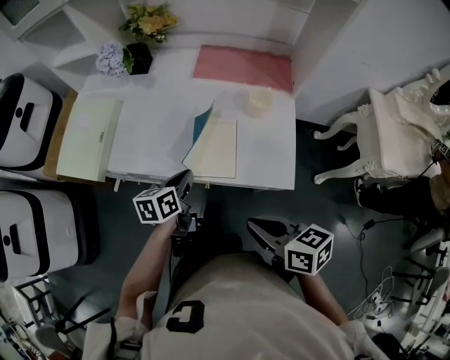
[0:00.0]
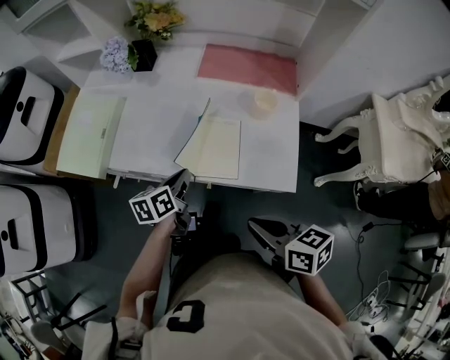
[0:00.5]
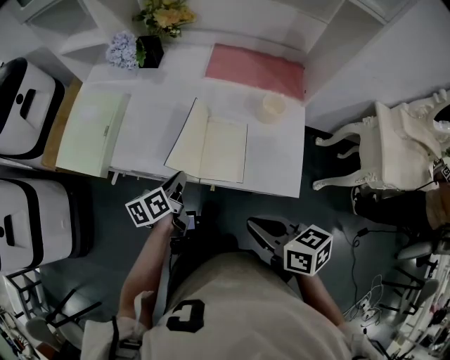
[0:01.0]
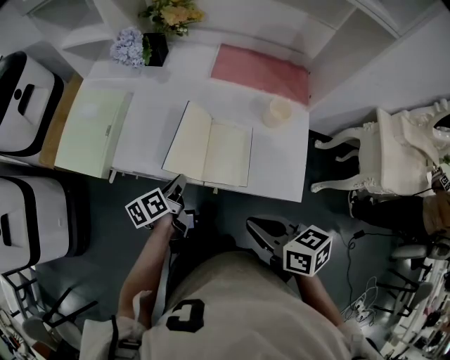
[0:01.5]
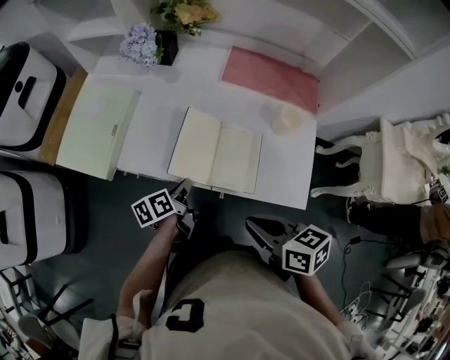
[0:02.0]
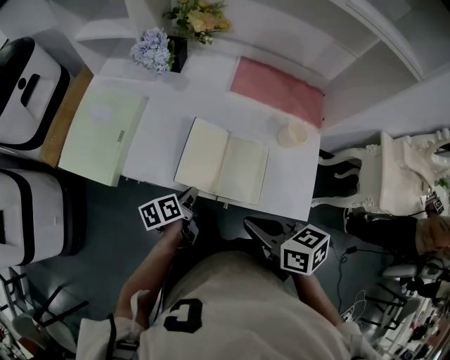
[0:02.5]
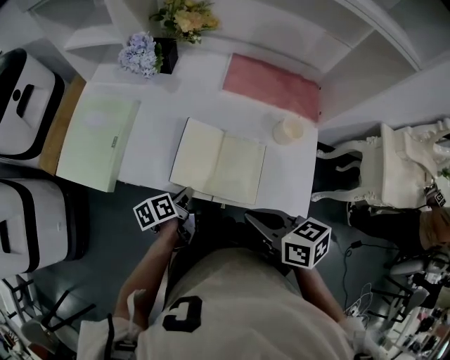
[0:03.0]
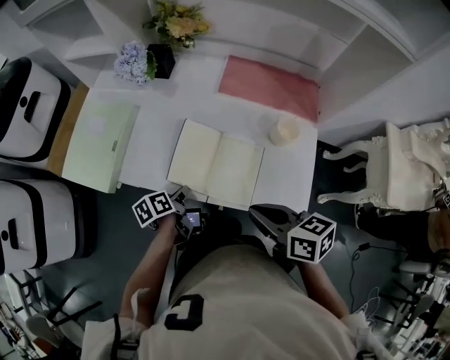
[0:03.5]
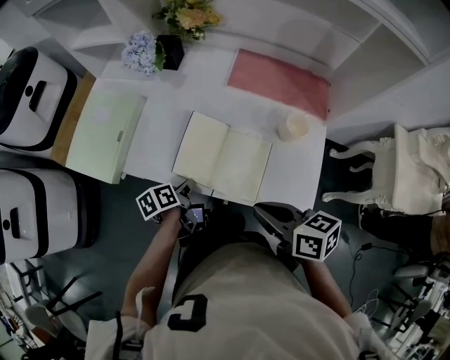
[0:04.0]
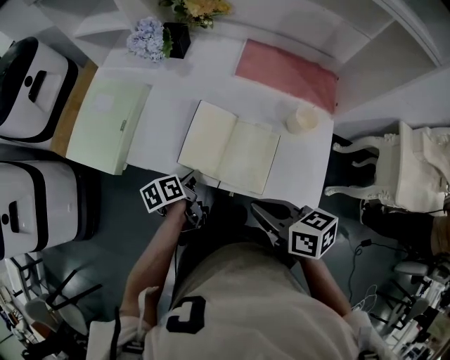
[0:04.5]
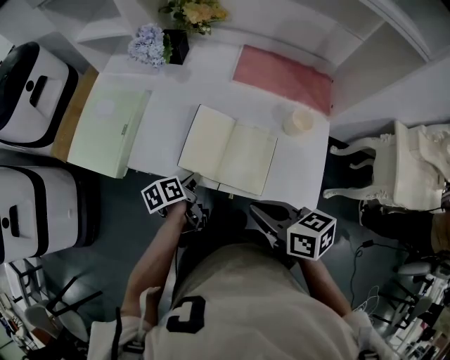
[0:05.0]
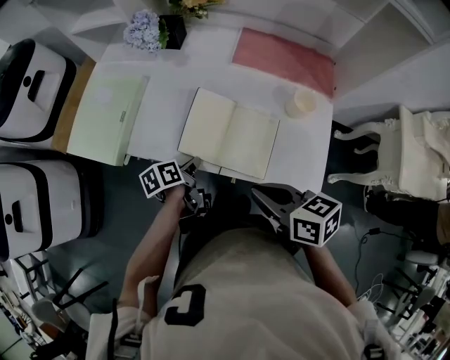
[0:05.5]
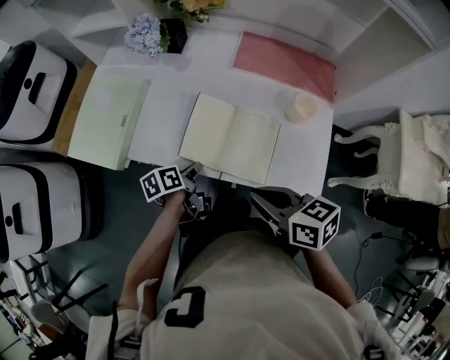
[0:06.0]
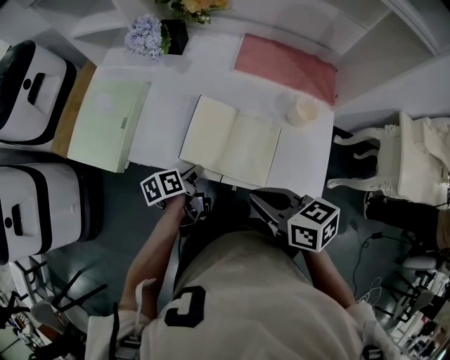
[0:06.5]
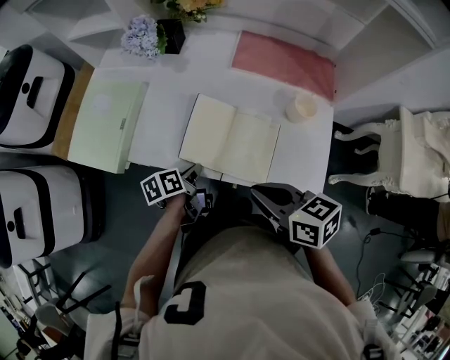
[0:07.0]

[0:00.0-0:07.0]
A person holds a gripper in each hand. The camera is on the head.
0:00.0 to 0:02.0: The left gripper goes approximately 10 cm to the left and downward, and changes its angle by some 30 degrees; the right gripper heads forward and to the left, covering approximately 10 cm.
0:02.0 to 0:03.5: The right gripper shifts about 5 cm forward.
0:03.5 to 0:07.0: There are only small adjustments of the grippers.

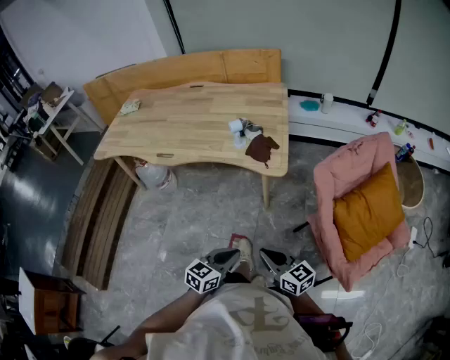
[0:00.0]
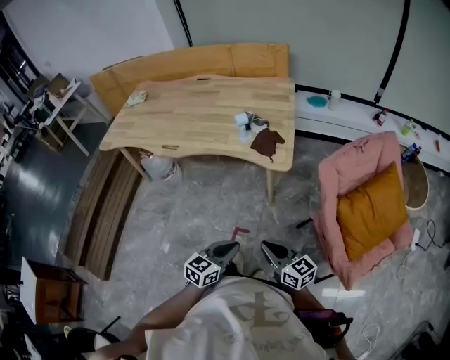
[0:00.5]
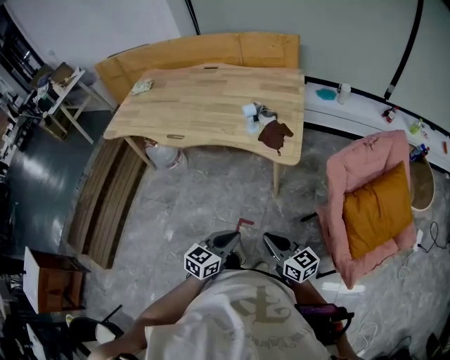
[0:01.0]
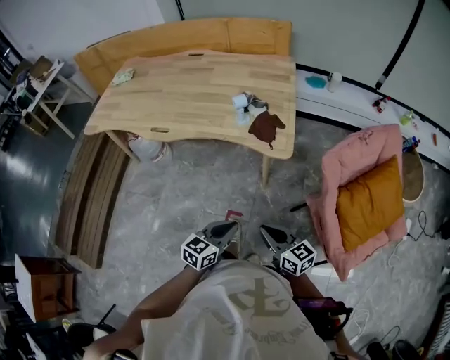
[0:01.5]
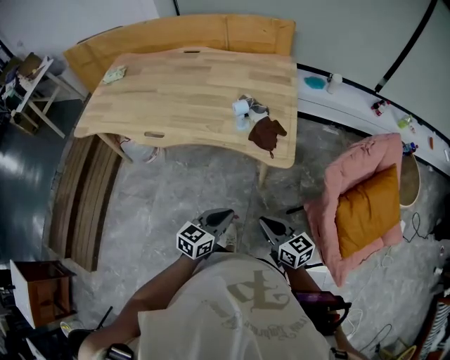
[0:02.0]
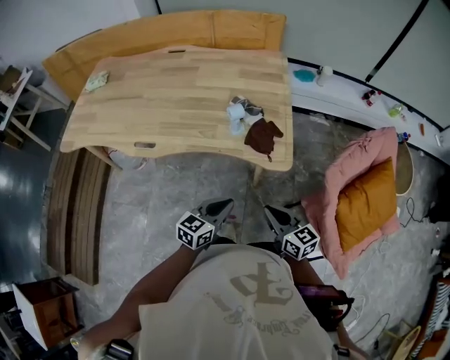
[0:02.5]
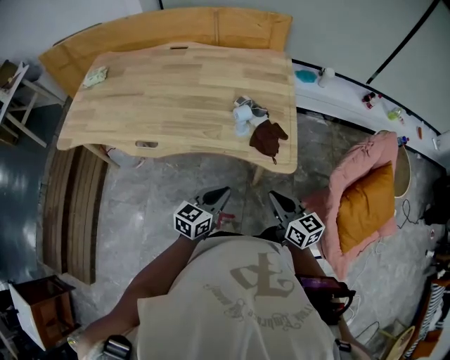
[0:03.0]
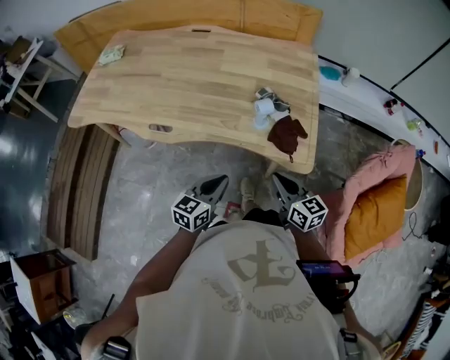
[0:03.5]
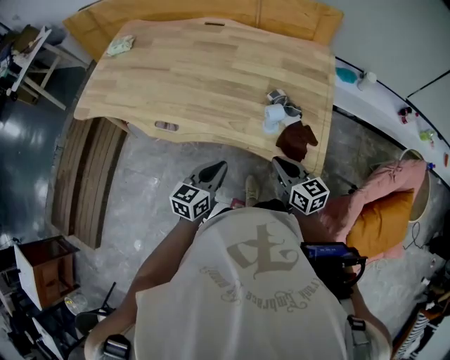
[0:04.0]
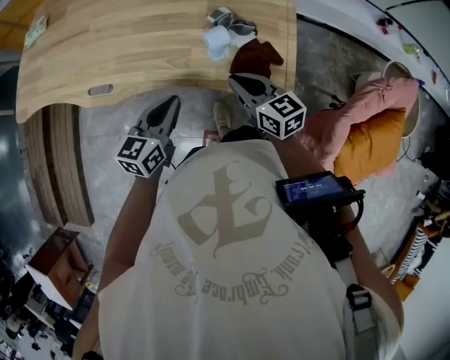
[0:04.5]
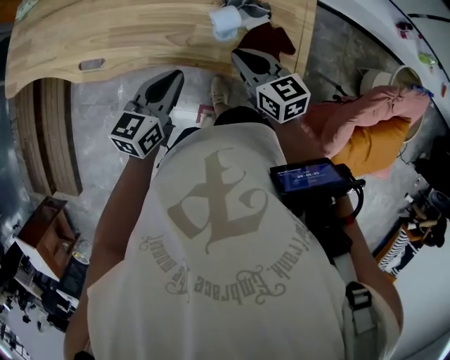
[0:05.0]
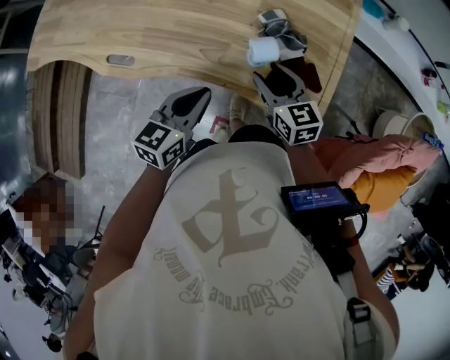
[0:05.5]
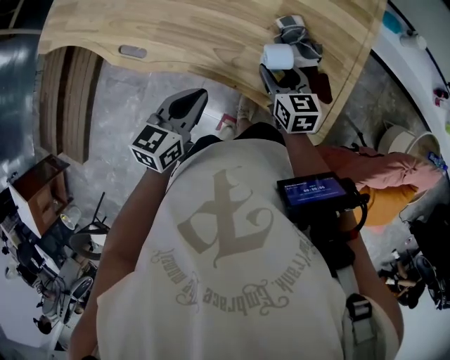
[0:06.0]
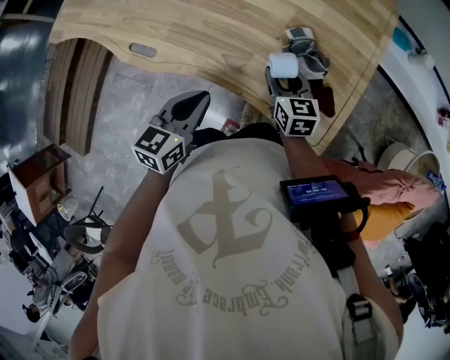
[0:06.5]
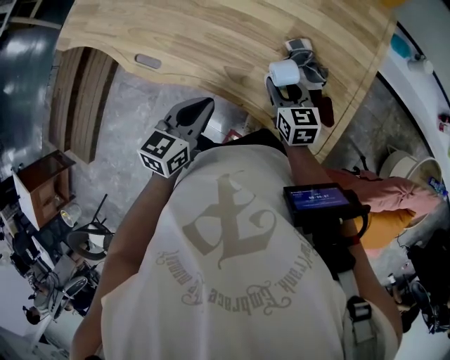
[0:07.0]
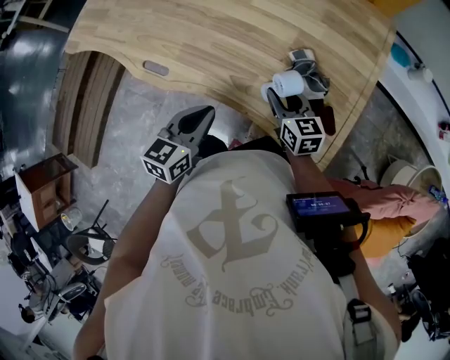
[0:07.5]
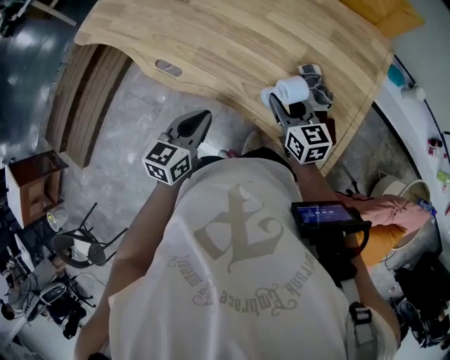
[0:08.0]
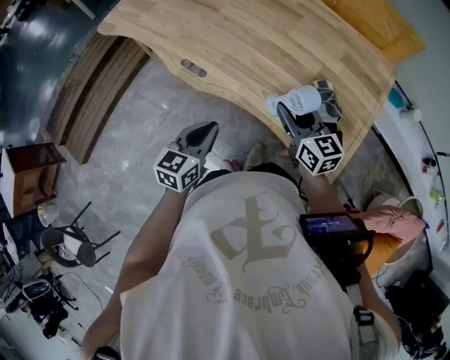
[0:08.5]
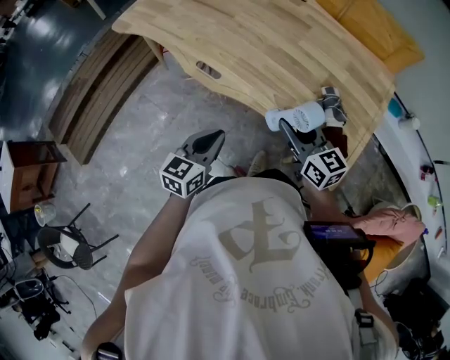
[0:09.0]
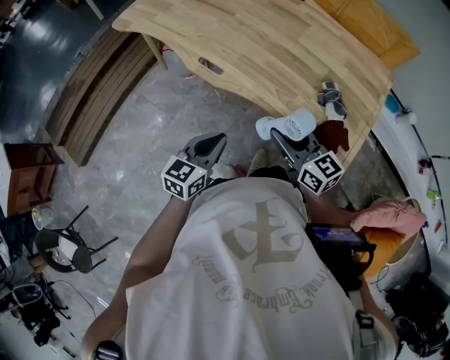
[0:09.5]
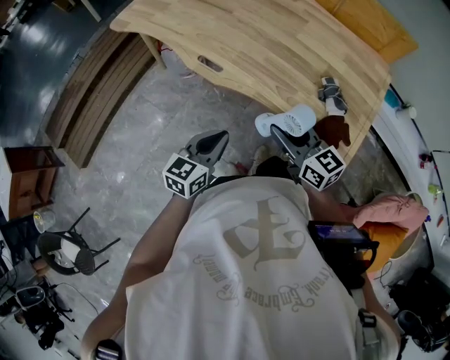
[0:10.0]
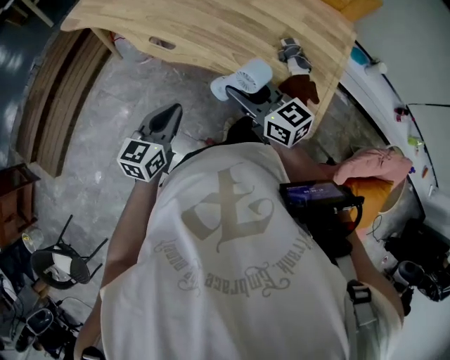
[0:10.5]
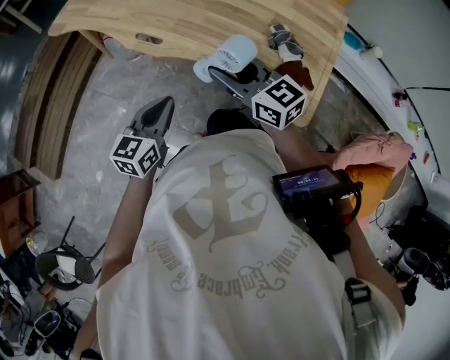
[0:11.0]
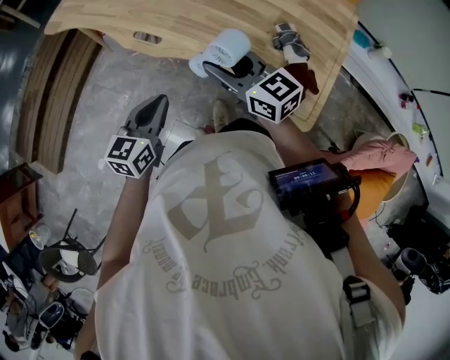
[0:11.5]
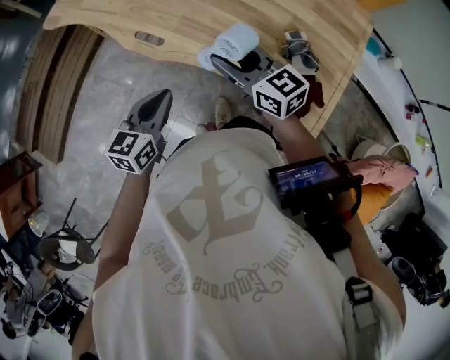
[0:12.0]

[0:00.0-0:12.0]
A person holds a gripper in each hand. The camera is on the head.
0:00.0 to 0:02.0: Both grippers travel together forward, roughly 15 cm.
0:02.0 to 0:04.0: The right gripper moves forward, about 25 cm. The left gripper shifts approximately 25 cm forward and to the left.
0:04.0 to 0:06.0: The right gripper is displaced forward and downward by some 20 cm, and opens up. Meanwhile the left gripper goes approximately 10 cm forward.
0:06.0 to 0:08.0: The left gripper heads to the left, covering some 5 cm. Meanwhile the right gripper shifts some 10 cm upward and to the left.
0:08.0 to 0:10.0: The left gripper heads backward and to the left, covering roughly 15 cm. The right gripper goes some 20 cm to the left, backward and upward.
0:10.0 to 0:12.0: The grippers both shift forward by roughly 10 cm.

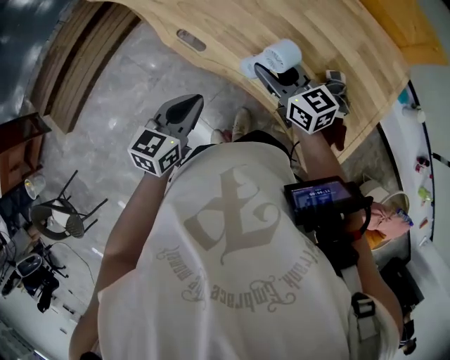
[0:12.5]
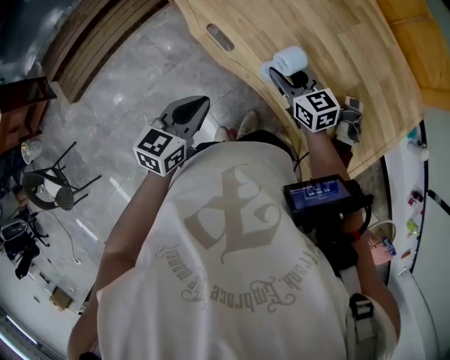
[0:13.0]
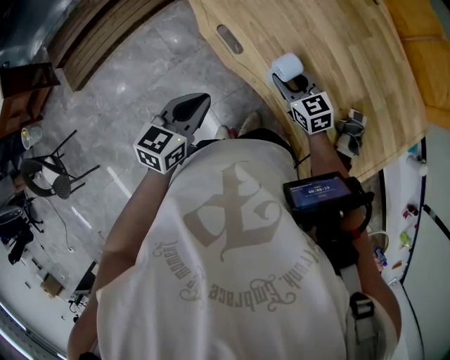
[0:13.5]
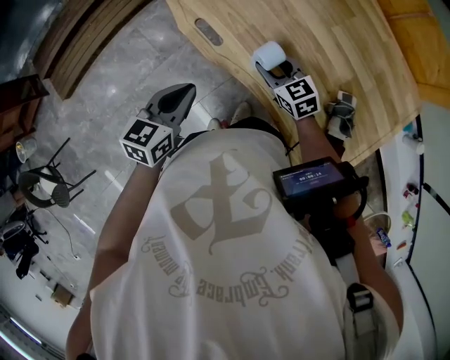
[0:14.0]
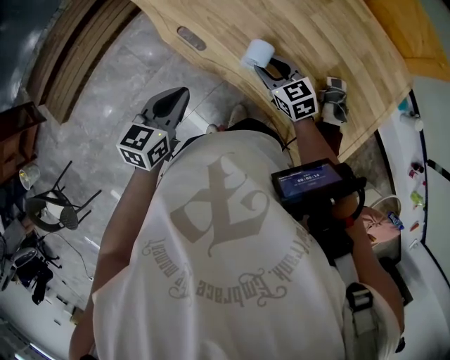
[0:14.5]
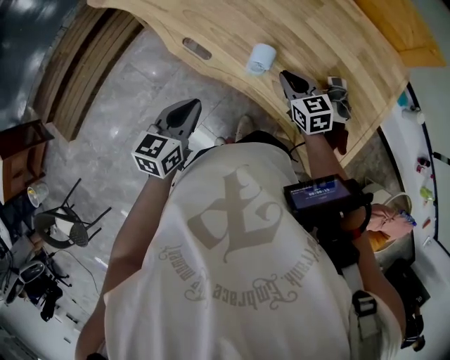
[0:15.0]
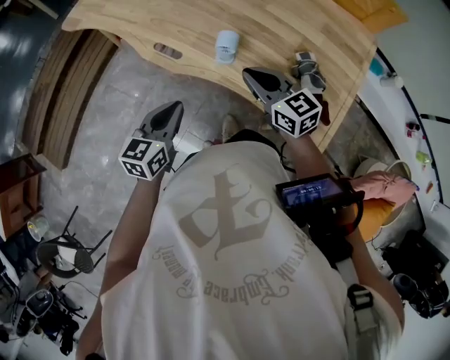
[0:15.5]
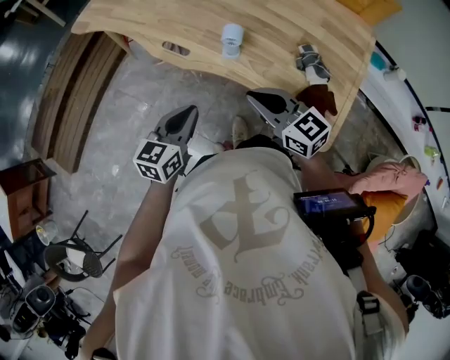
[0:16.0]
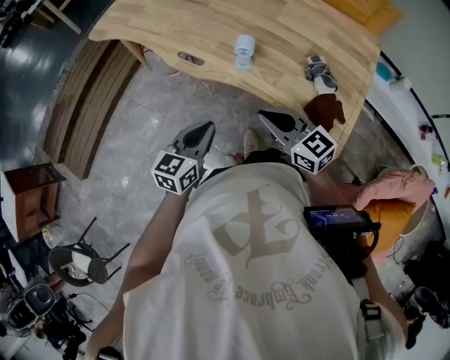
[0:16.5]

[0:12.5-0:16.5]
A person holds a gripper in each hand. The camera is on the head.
0:12.5 to 0:14.5: The left gripper changes place by approximately 5 cm. Meanwhile the right gripper shifts approximately 10 cm downward, and rotates roughly 20 degrees.
0:14.5 to 0:16.5: The left gripper is displaced backward by some 15 cm. The right gripper moves backward and upward, some 30 cm, swivels roughly 20 degrees, and closes its fingers.

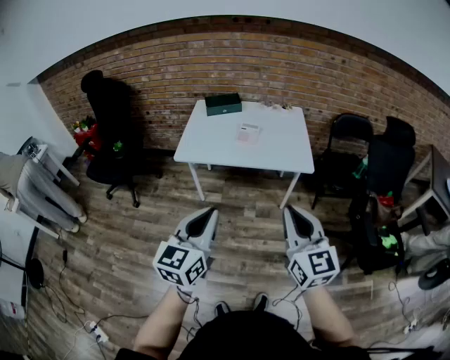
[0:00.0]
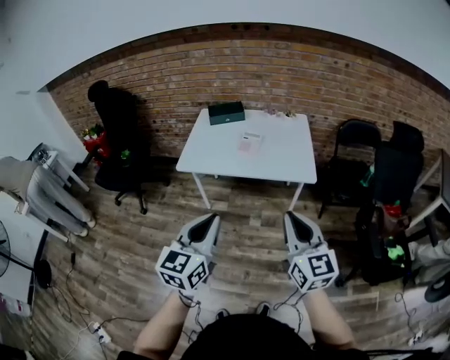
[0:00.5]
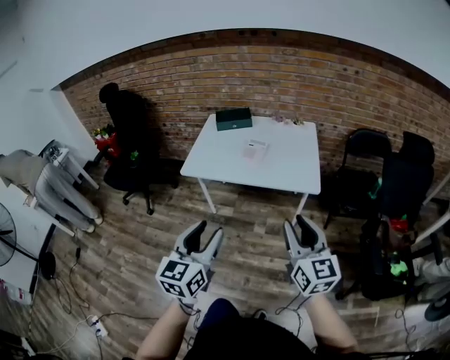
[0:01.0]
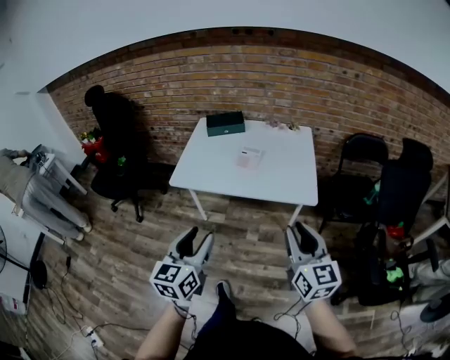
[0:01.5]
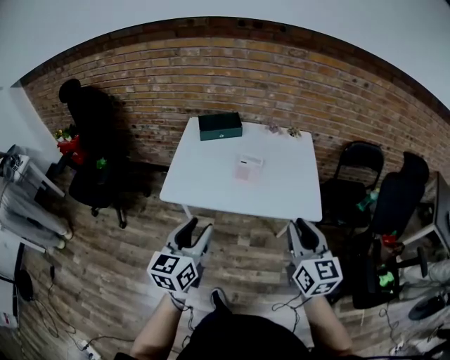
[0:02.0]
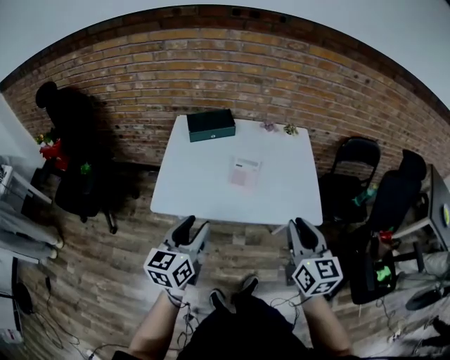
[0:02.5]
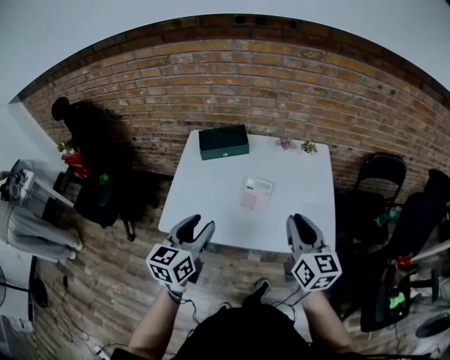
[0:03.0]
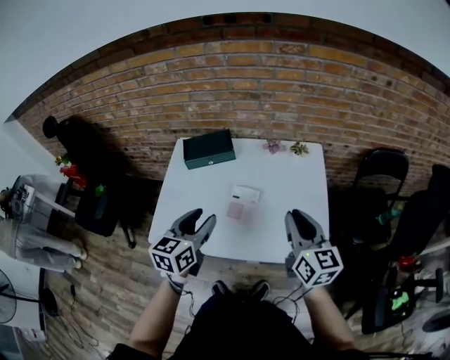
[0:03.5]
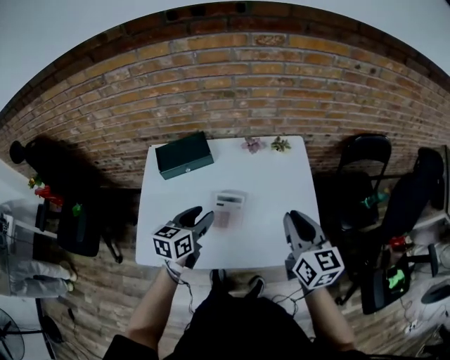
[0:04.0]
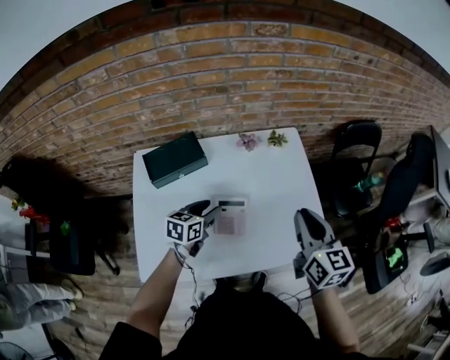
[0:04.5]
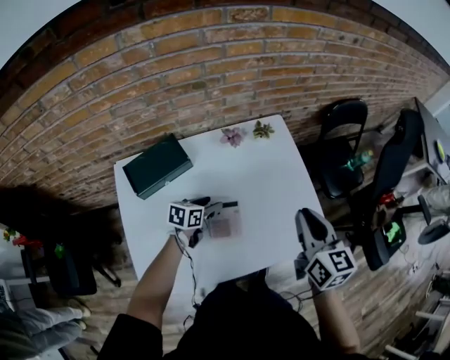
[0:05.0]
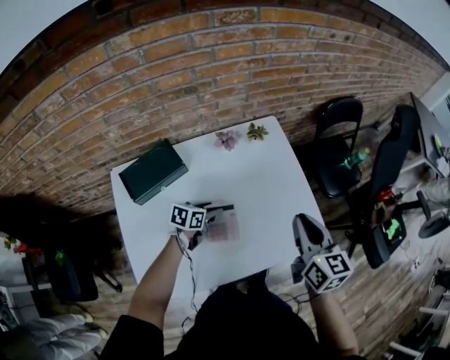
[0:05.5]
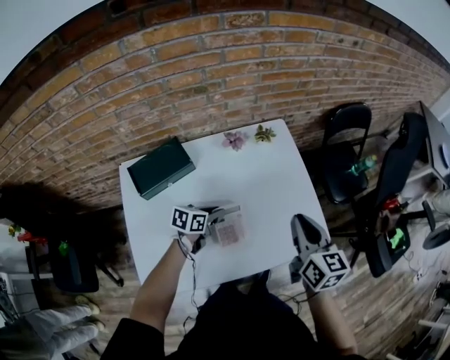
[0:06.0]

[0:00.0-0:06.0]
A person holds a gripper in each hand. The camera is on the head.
0:00.0 to 0:02.0: The grippers both shift forward by about 30 cm. The left gripper opens up, while the right gripper opens.
0:02.0 to 0:04.0: The two grippers go some 40 cm forward. The left gripper changes its angle by roughly 30 degrees.
0:04.0 to 0:06.0: The left gripper goes some 15 cm downward, changes its angle by roughly 40 degrees, and closes its fingers. Meanwhile the right gripper changes place by about 5 cm.
